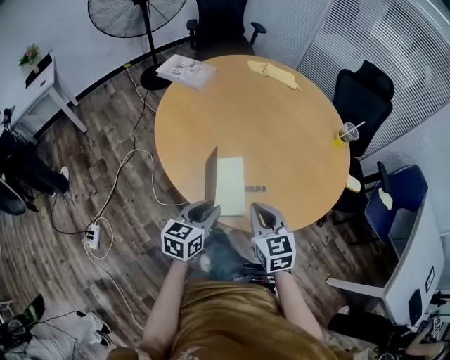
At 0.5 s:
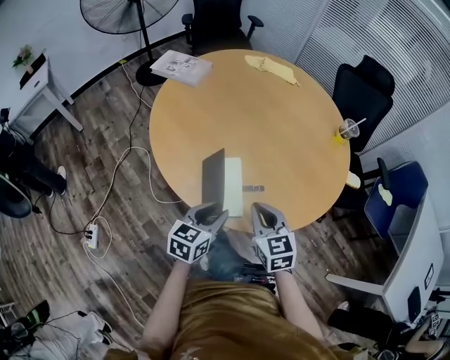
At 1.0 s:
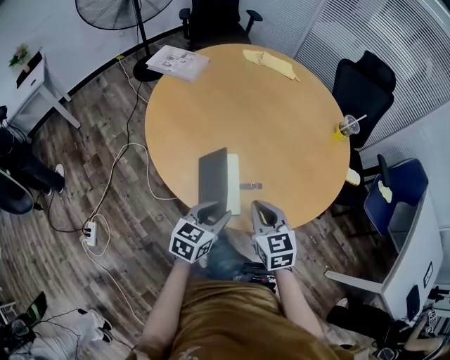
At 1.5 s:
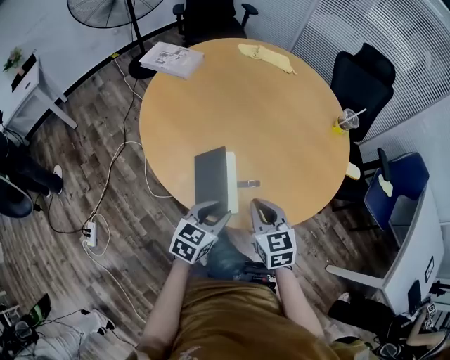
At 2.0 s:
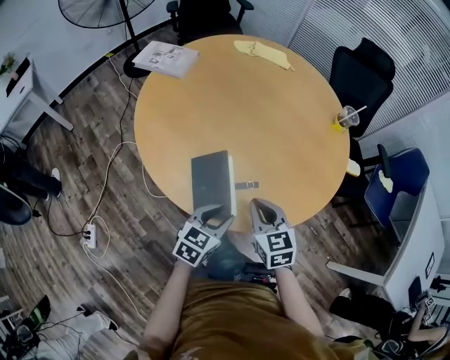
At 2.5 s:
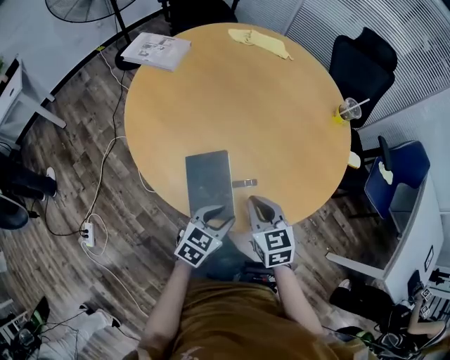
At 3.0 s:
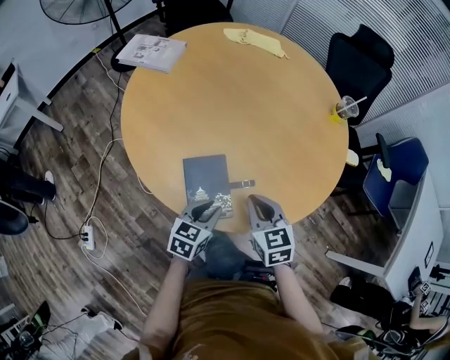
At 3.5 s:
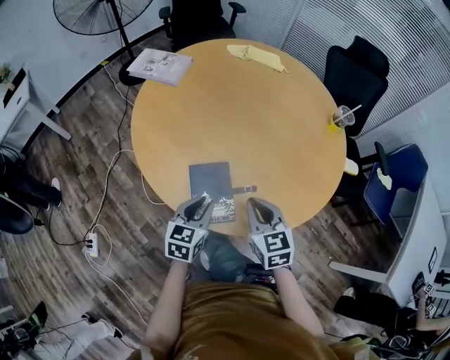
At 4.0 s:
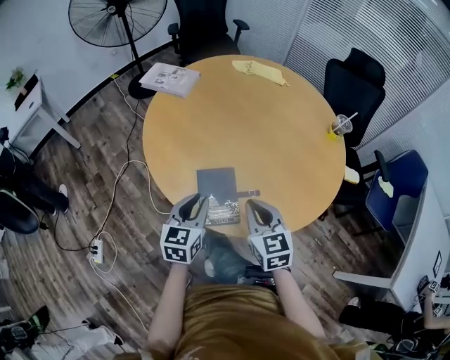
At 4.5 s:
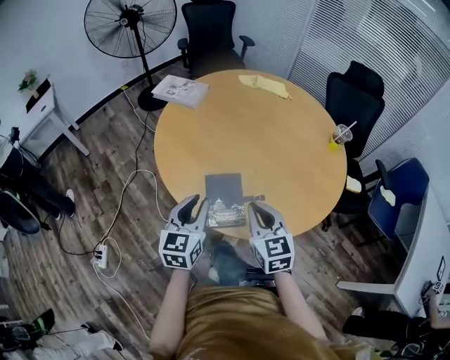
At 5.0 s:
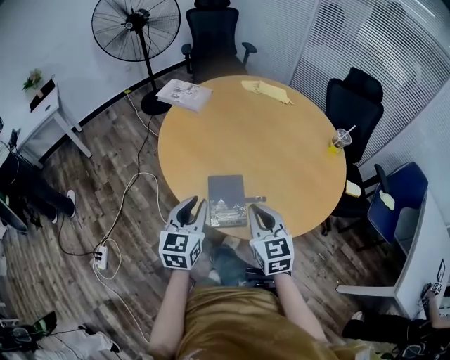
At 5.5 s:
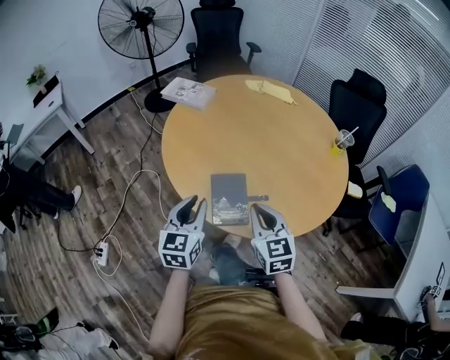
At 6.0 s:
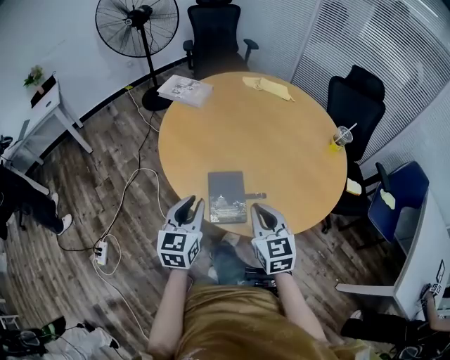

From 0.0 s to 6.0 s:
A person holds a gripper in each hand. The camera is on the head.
From 0.0 s to 2.0 s: The right gripper changes place by about 5 cm; the left gripper moves to the right, approximately 10 cm, and swivels about 20 degrees.
From 2.0 s to 4.0 s: The right gripper changes place by about 5 cm, while the left gripper heads to the left and upward, covering approximately 10 cm, and rotates some 30 degrees.
From 4.0 s to 6.0 s: The left gripper heads upward, covering roughly 5 cm.

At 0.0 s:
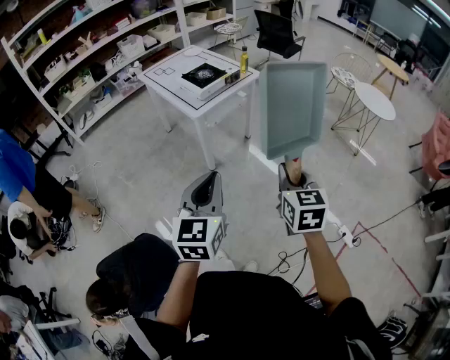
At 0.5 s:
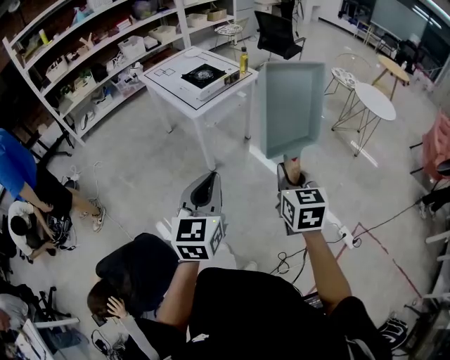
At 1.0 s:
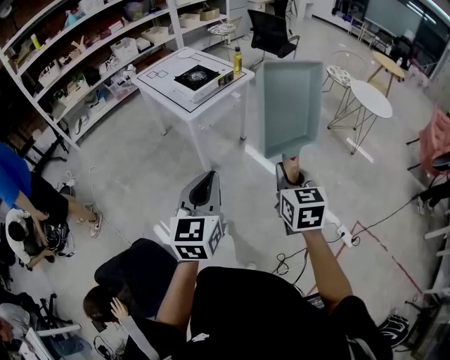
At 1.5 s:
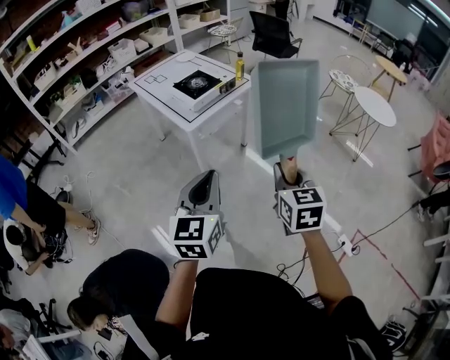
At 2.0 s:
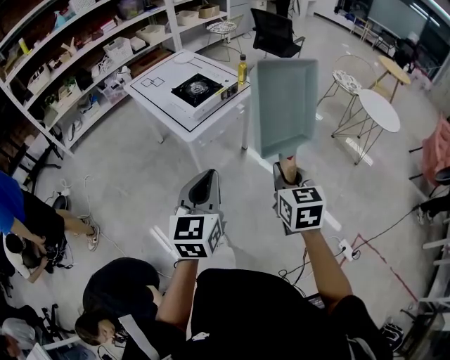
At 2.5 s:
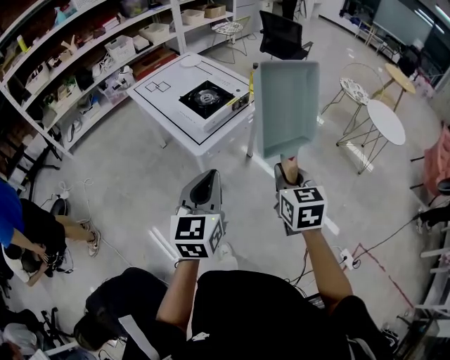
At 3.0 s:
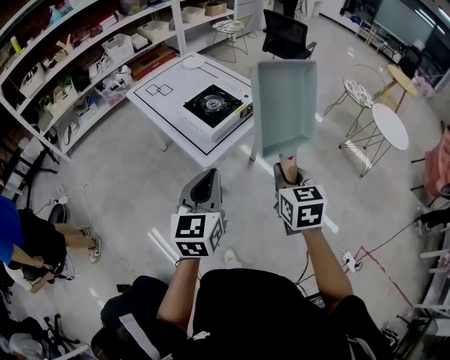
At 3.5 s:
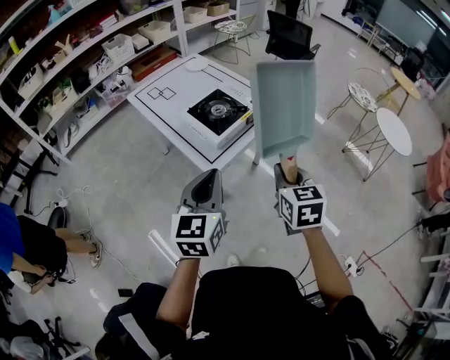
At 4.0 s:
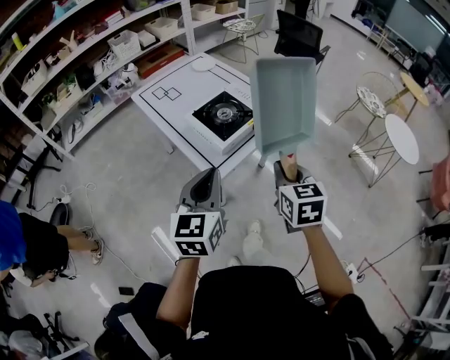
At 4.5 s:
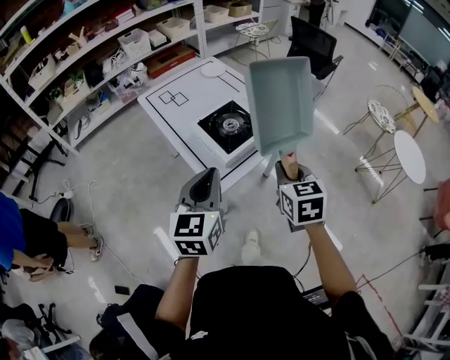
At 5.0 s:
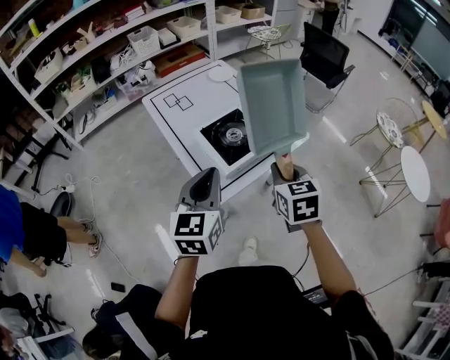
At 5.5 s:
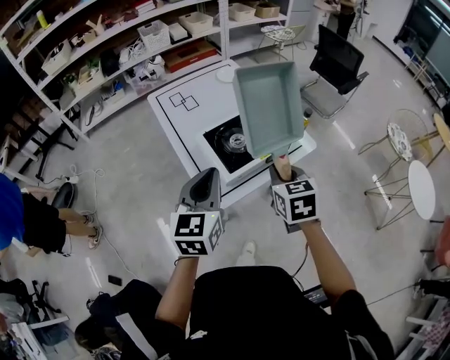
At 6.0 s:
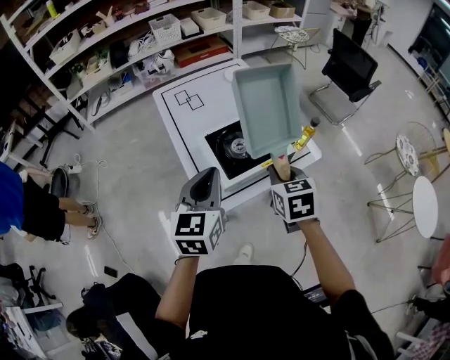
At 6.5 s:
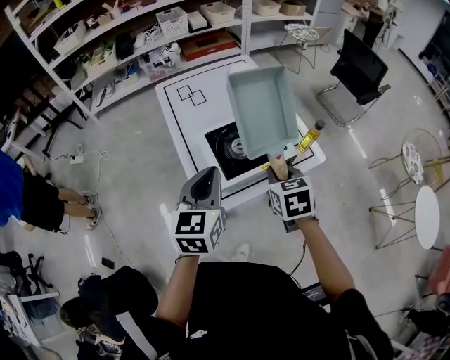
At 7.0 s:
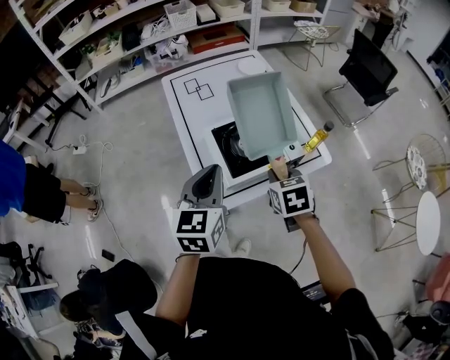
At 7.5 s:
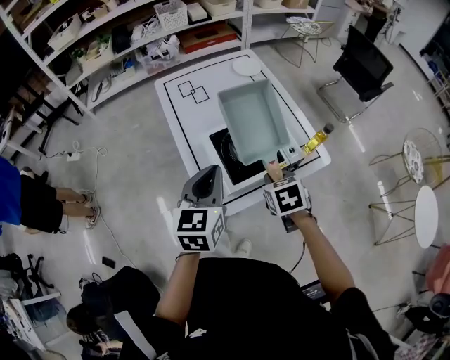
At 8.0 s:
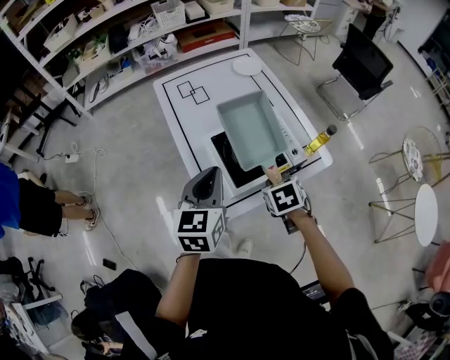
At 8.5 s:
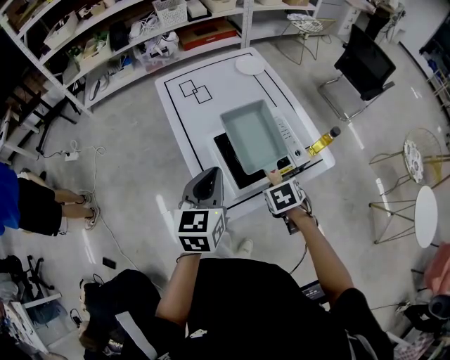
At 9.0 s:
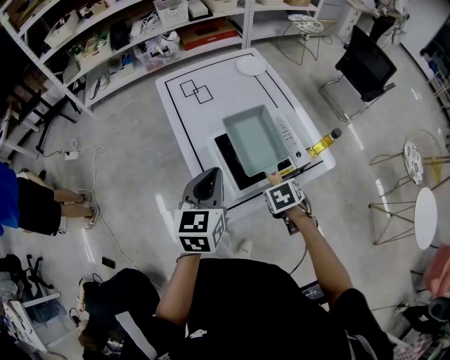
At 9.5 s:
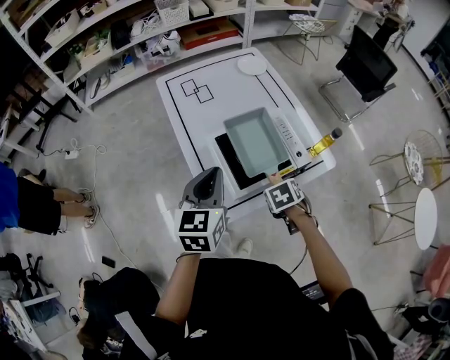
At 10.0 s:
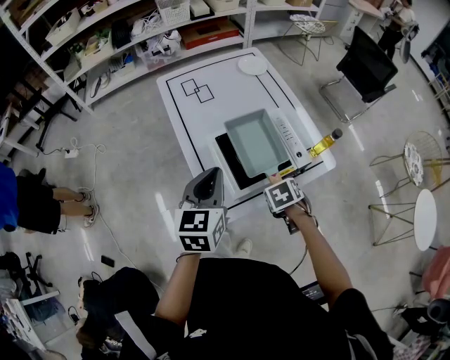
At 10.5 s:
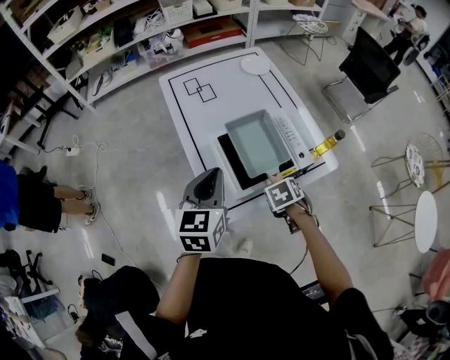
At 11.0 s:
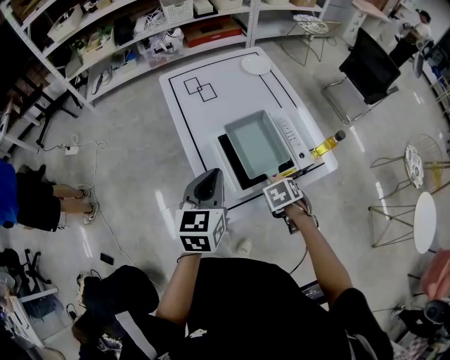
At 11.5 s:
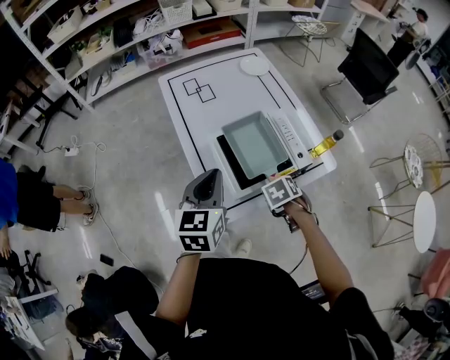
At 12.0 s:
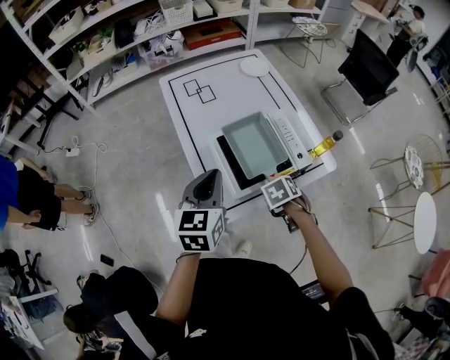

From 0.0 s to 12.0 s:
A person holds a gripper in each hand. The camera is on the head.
From 0.0 s to 2.0 s: Both grippers travel together forward, approximately 20 cm.
From 2.0 s to 4.0 s: Both grippers travel together forward and to the left, some 30 cm.
From 4.0 s to 6.0 s: Both grippers move forward, roughly 20 cm. The right gripper turns by approximately 20 degrees.
From 6.0 s to 8.0 s: The right gripper heads downward, covering roughly 10 cm, and turns by some 20 degrees, while the left gripper heads forward, covering approximately 5 cm.
From 8.0 s to 10.0 s: The right gripper goes some 5 cm downward.
From 10.0 s to 12.0 s: The grippers stay close to where they were, moving slightly.

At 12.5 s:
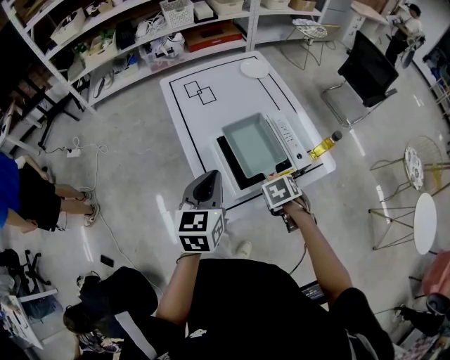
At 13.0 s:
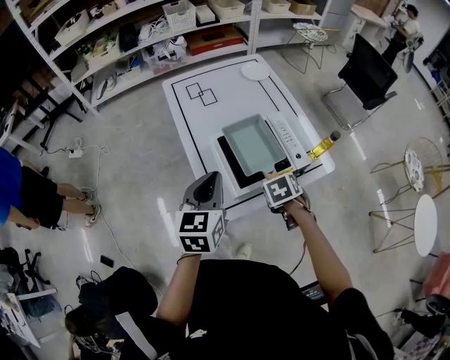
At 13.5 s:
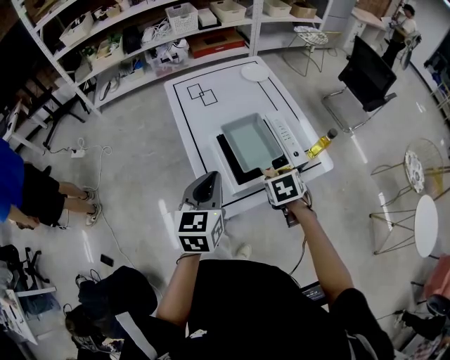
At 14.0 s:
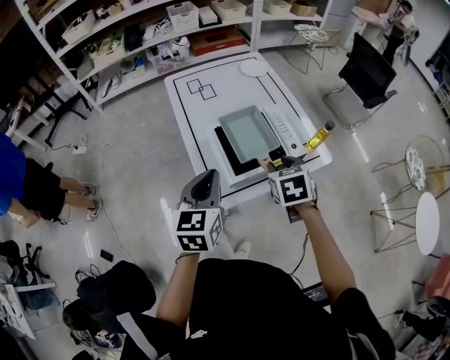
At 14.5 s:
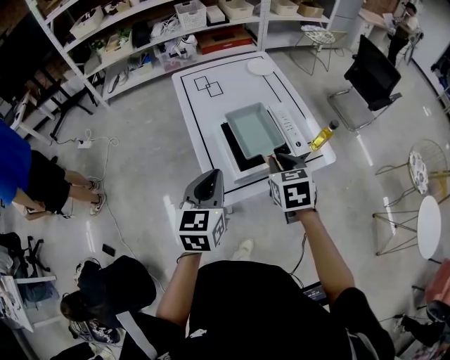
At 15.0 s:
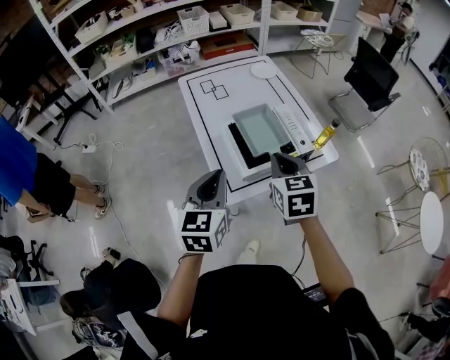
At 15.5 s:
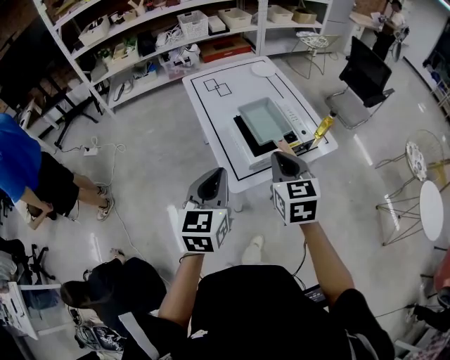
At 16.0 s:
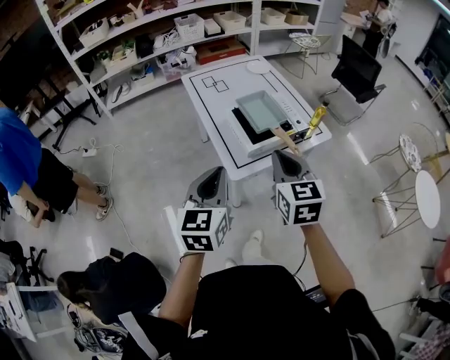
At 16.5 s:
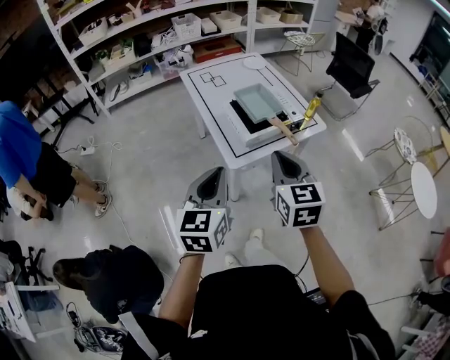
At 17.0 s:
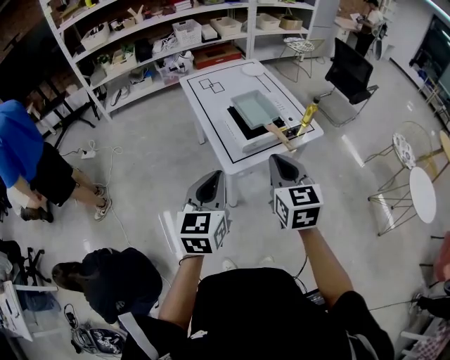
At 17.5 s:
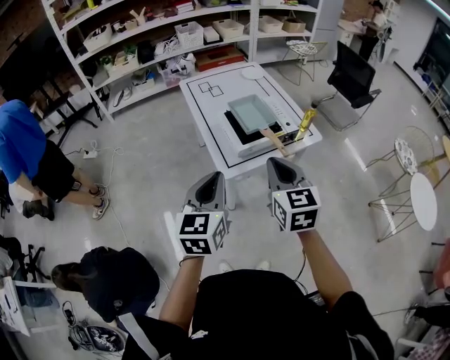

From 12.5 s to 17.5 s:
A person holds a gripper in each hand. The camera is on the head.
From 12.5 s to 15.0 s: The right gripper goes approximately 20 cm upward, angles its fingers upward, by about 40 degrees, and opens, then closes once more. The left gripper moves backward, about 10 cm.
From 15.0 s to 17.5 s: The two grippers go some 20 cm backward.

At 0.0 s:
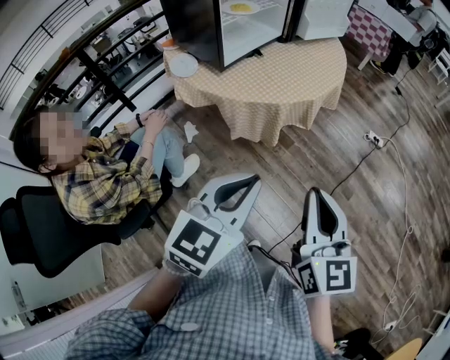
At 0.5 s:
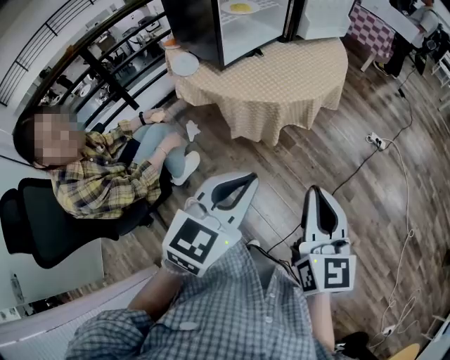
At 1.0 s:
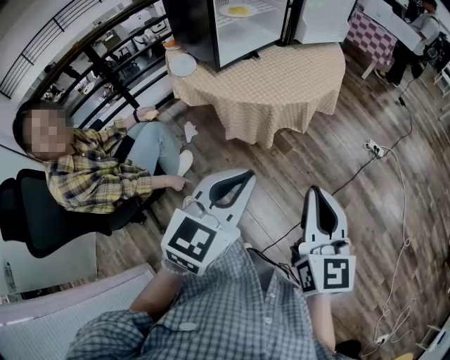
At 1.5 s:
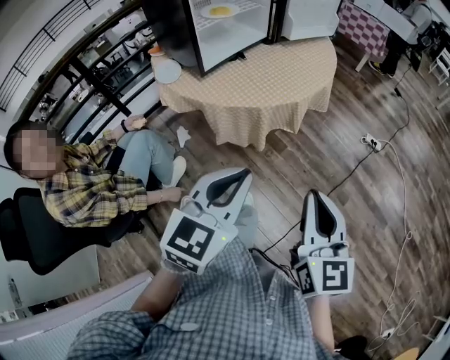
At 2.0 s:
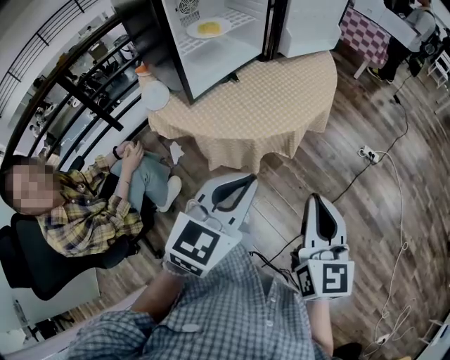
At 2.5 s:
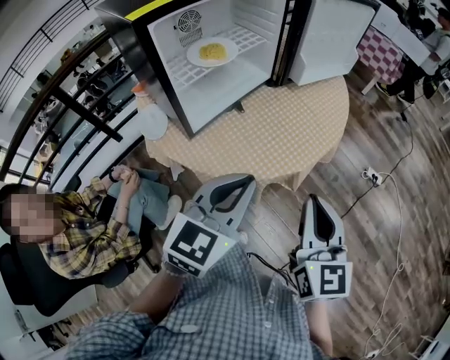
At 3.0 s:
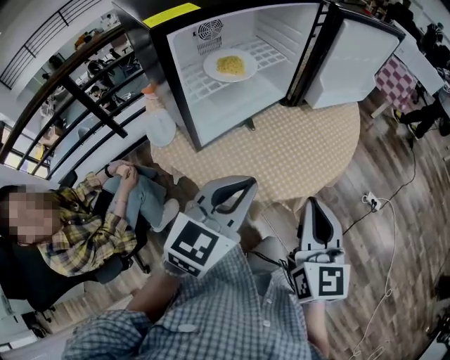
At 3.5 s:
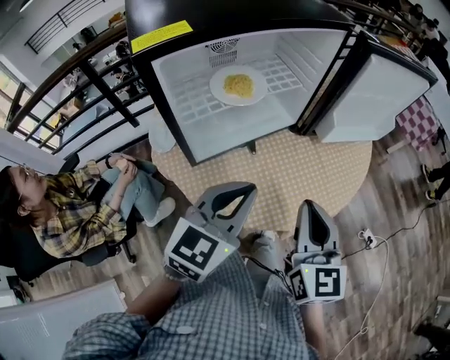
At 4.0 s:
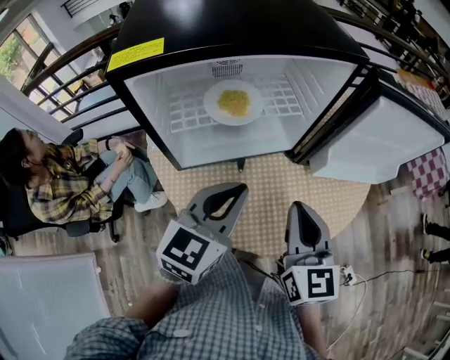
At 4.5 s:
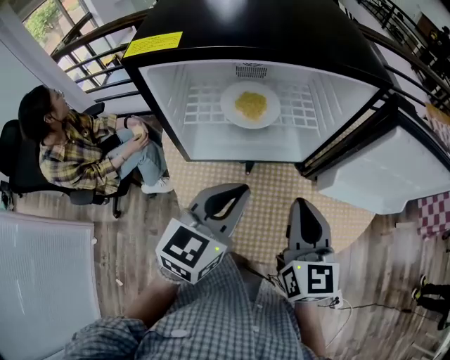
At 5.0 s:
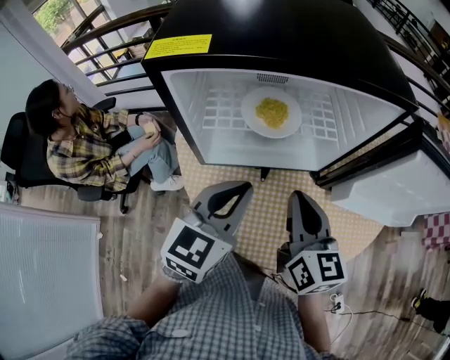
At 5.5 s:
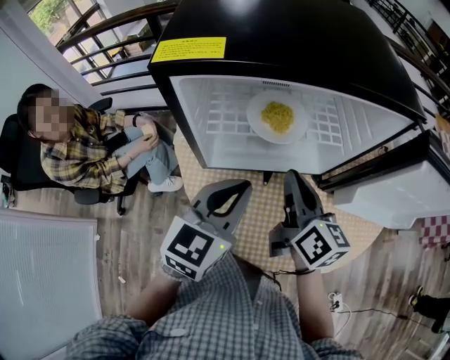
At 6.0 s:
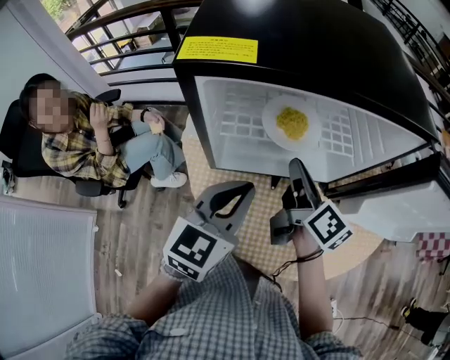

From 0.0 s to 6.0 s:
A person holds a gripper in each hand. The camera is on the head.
From 0.0 s to 2.0 s: The two grippers go approximately 15 cm forward.
From 2.0 s to 4.0 s: The right gripper changes place by about 40 cm, and changes its angle by some 40 degrees; the left gripper moves roughly 35 cm, and turns by some 30 degrees.
From 4.0 s to 6.0 s: The right gripper heads forward and to the left, covering approximately 20 cm, and twists roughly 40 degrees clockwise, seen from behind, while the left gripper is displaced to the left by approximately 10 cm.
